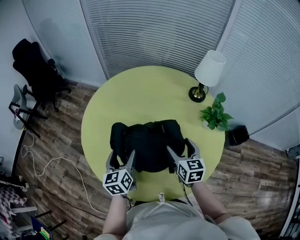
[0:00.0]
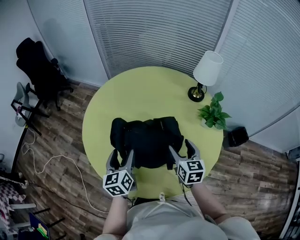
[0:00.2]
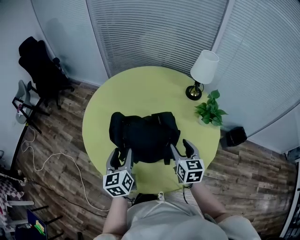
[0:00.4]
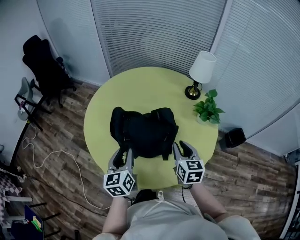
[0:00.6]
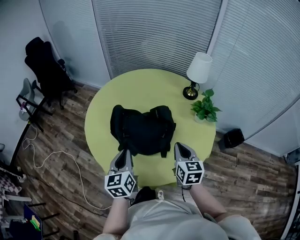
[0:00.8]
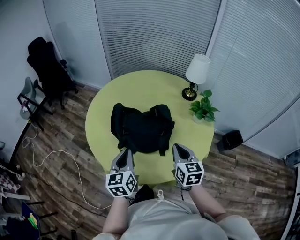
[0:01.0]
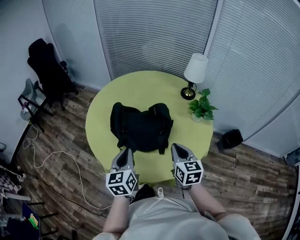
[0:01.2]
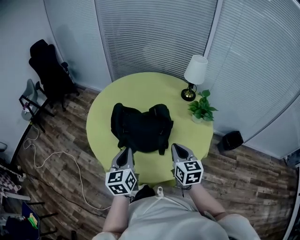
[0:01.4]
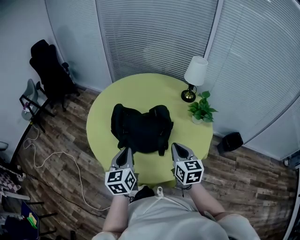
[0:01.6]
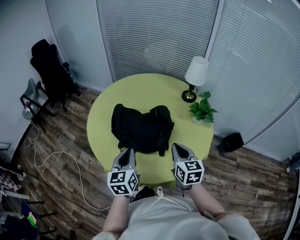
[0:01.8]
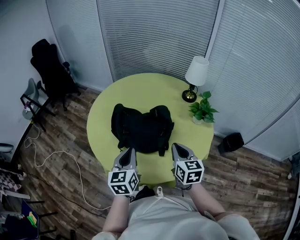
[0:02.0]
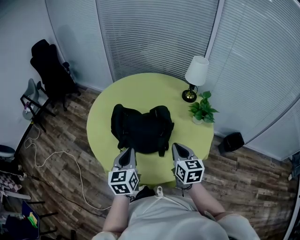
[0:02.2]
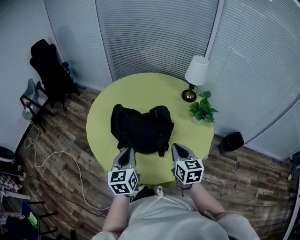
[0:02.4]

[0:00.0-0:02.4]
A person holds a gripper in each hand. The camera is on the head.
0:00.0 to 0:01.2: The right gripper moves backward, roughly 15 cm, and closes. The left gripper moves backward and upward, approximately 20 cm, and closes.
0:01.2 to 0:02.4: The grippers move only a little.

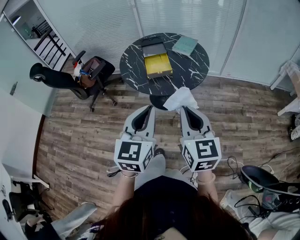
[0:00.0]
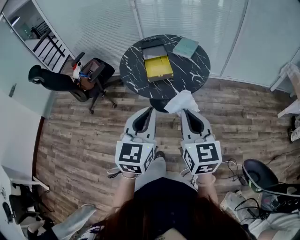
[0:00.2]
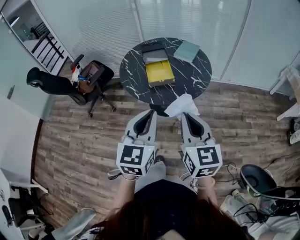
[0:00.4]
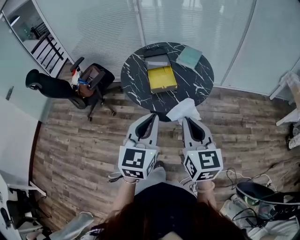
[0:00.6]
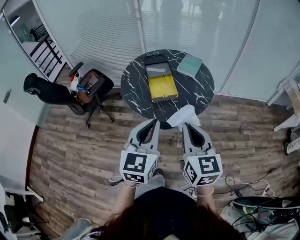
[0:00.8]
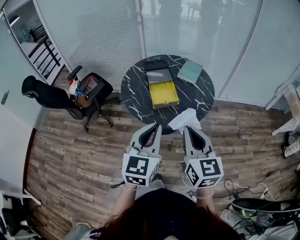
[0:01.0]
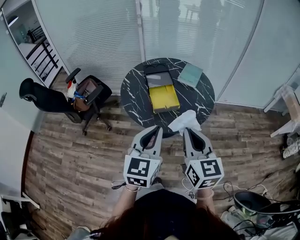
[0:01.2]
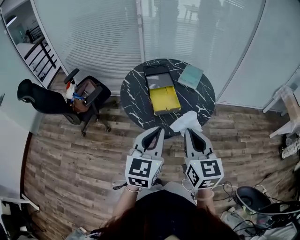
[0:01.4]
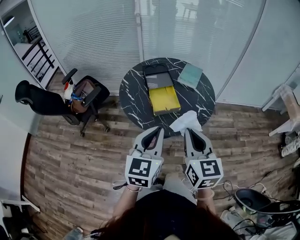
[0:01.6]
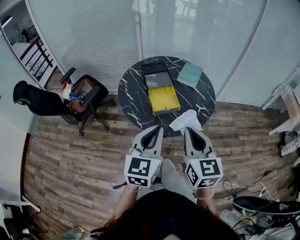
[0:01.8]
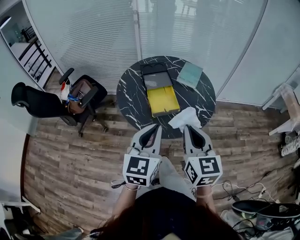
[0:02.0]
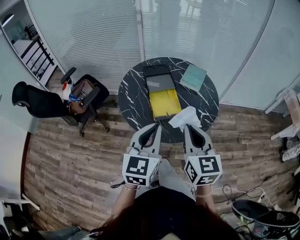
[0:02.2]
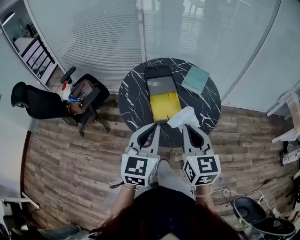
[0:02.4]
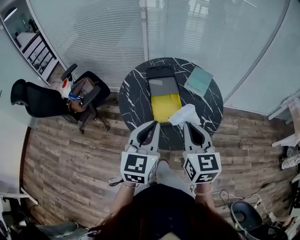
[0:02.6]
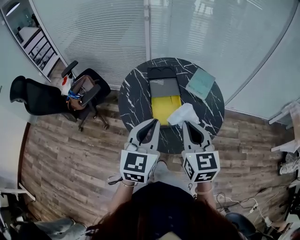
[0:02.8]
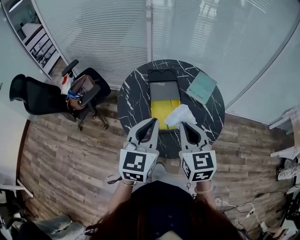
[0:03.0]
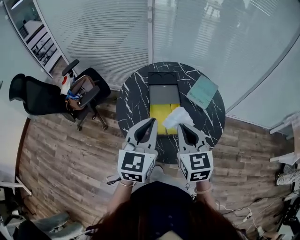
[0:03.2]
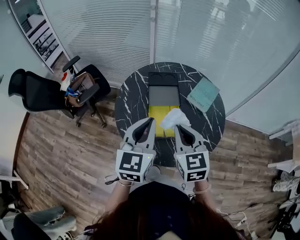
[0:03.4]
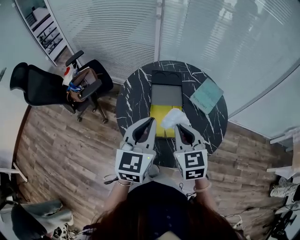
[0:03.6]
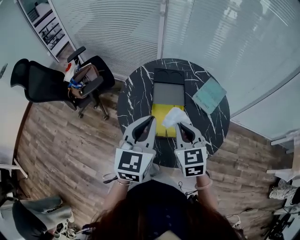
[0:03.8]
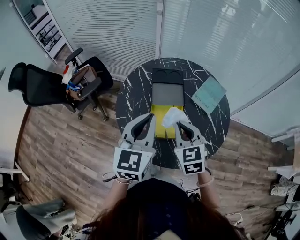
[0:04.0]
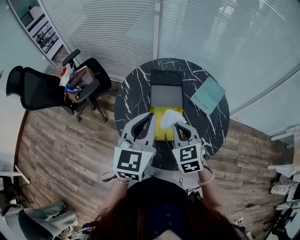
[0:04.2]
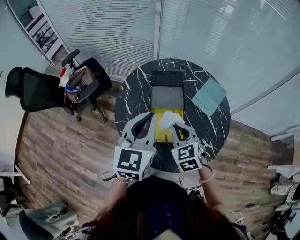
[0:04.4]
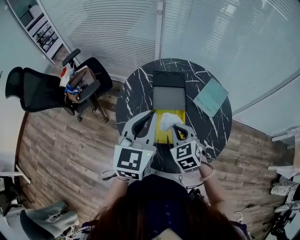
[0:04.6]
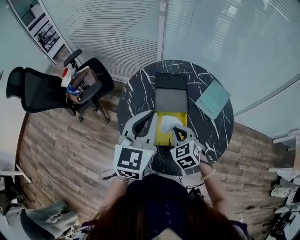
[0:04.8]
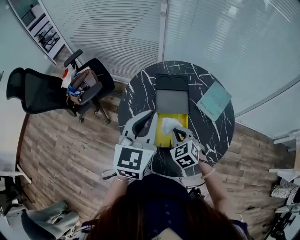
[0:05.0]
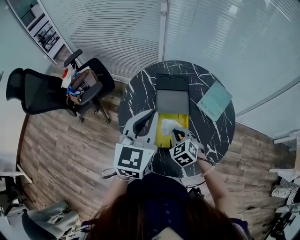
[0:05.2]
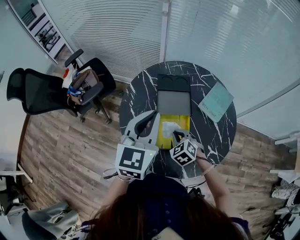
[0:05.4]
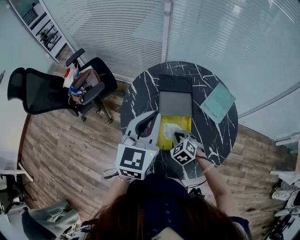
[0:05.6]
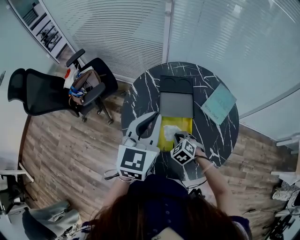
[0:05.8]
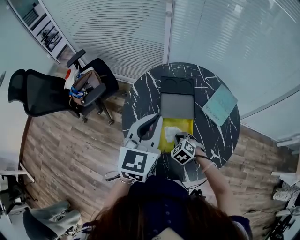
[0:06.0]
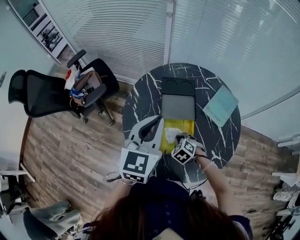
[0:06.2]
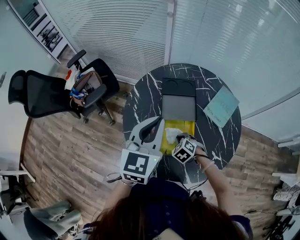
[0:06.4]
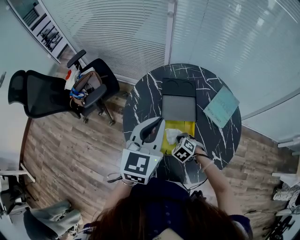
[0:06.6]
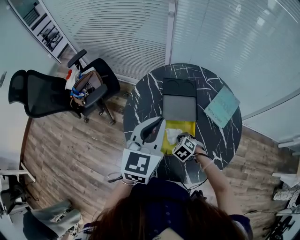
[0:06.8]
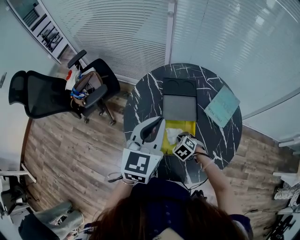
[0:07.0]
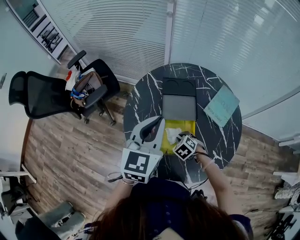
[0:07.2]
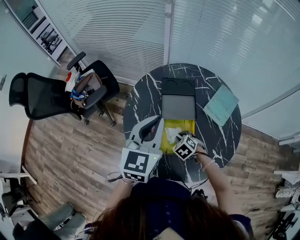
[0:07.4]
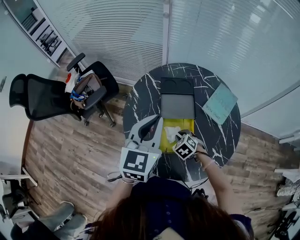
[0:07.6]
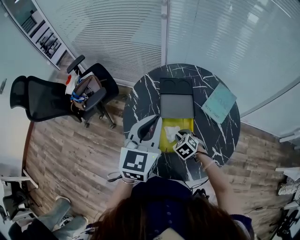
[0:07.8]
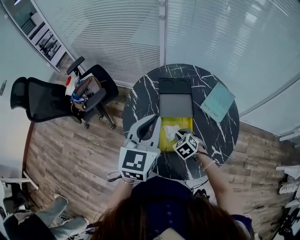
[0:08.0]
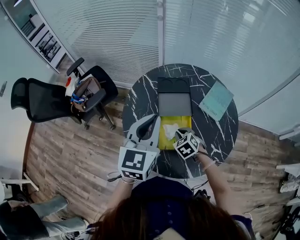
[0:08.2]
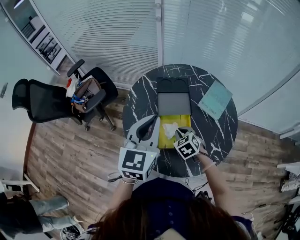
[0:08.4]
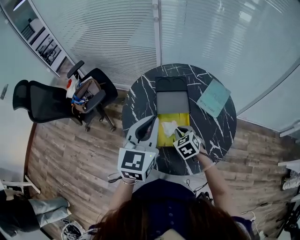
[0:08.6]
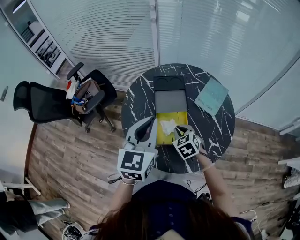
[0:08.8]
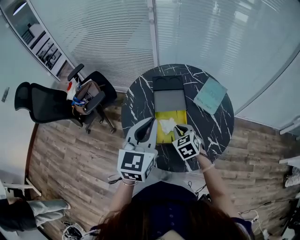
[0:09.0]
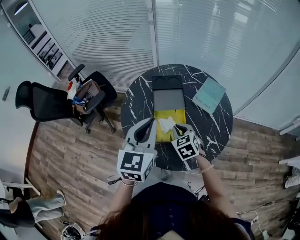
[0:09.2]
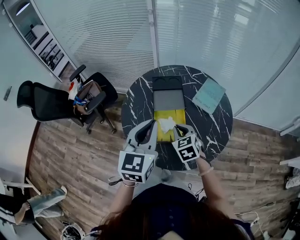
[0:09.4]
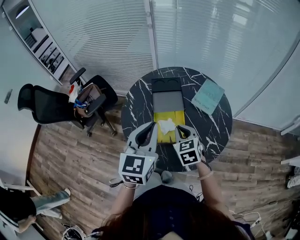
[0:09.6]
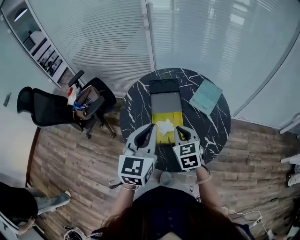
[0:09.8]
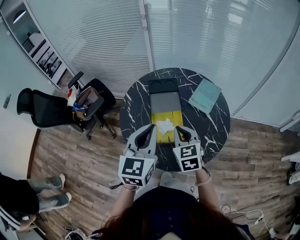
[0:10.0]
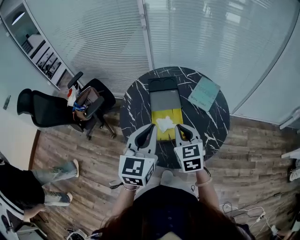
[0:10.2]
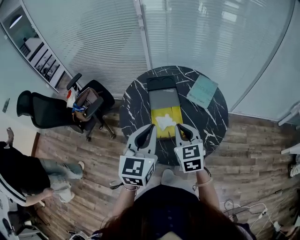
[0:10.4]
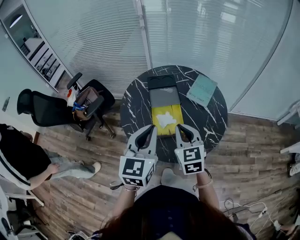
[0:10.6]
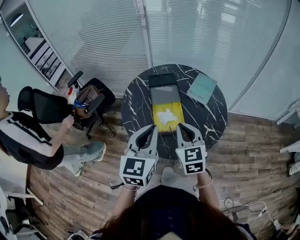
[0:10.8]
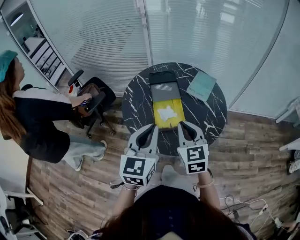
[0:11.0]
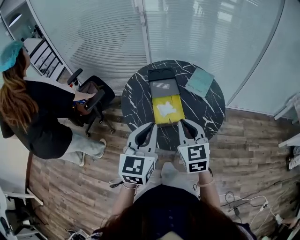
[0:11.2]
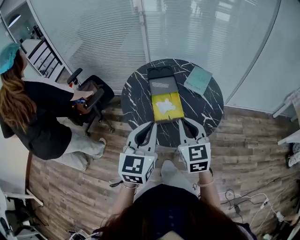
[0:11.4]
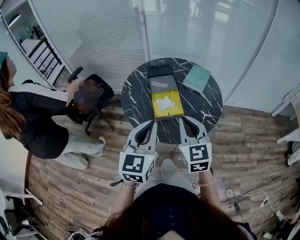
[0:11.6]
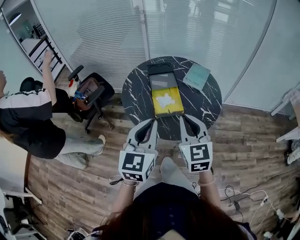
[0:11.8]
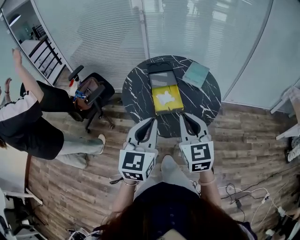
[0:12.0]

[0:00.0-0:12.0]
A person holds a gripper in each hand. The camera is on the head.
0:00.0 to 0:01.6: Both grippers travel together forward and to the left, approximately 20 cm.
0:01.6 to 0:03.0: Both grippers move forward, about 20 cm.
0:03.0 to 0:04.4: The left gripper heads forward, covering about 10 cm. Meanwhile the right gripper moves downward and forward, about 15 cm, and swivels approximately 30 degrees.
0:04.4 to 0:06.0: The left gripper shifts some 5 cm forward, while the right gripper travels downward by roughly 20 cm, and swivels about 30 degrees.
0:06.0 to 0:07.6: The grippers move only a little.
0:07.6 to 0:09.0: The left gripper moves backward, roughly 10 cm. The right gripper moves upward, some 10 cm, and turns by approximately 20 degrees.
0:09.0 to 0:10.4: The right gripper shifts roughly 15 cm upward and backward, and changes its angle by approximately 30 degrees. Meanwhile the left gripper moves backward, roughly 5 cm.
0:10.4 to 0:12.0: The right gripper moves backward and upward, approximately 20 cm. The left gripper is displaced backward by about 15 cm.

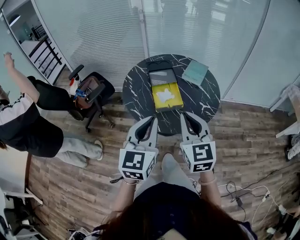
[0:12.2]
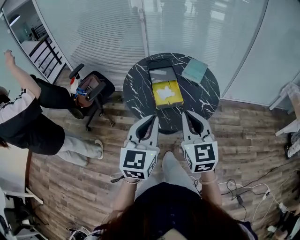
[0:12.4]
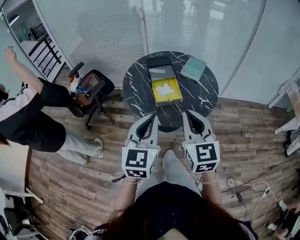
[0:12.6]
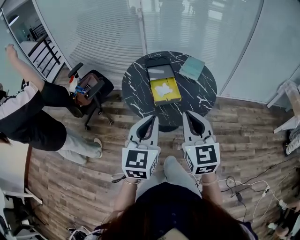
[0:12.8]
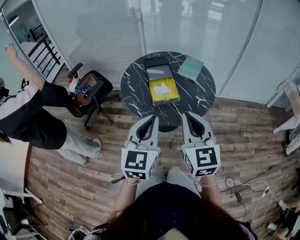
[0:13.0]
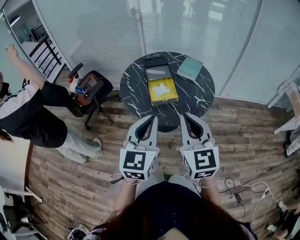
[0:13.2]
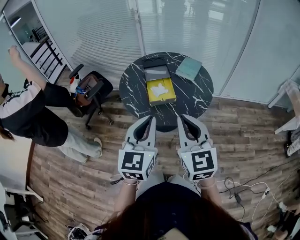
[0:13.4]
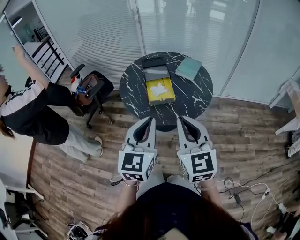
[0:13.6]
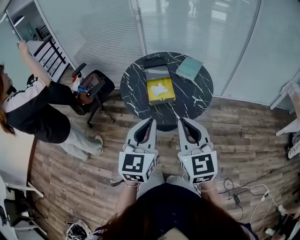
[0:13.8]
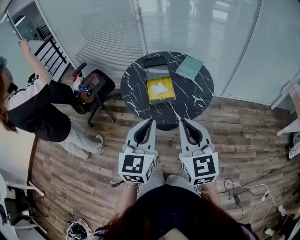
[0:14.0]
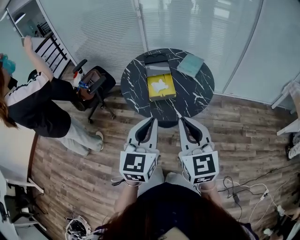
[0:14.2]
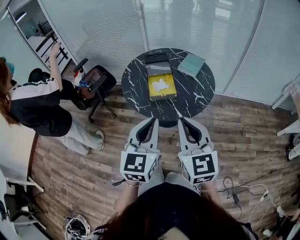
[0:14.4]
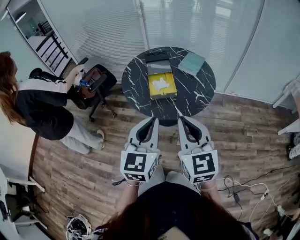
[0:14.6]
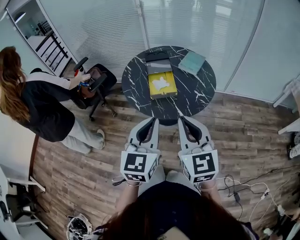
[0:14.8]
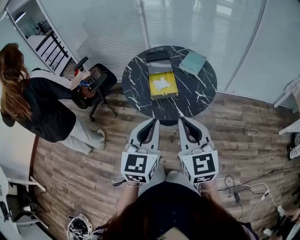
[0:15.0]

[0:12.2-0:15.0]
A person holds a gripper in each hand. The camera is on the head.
0:12.2 to 0:13.6: The right gripper heads backward, covering about 10 cm, while the left gripper travels backward and to the right by some 10 cm.
0:13.6 to 0:15.0: The grippers make only small movements.

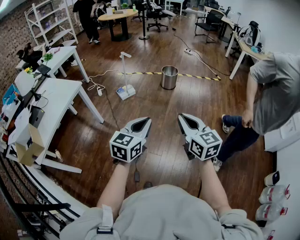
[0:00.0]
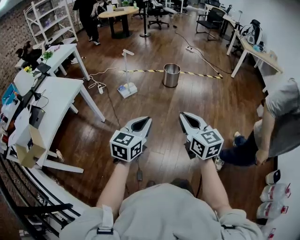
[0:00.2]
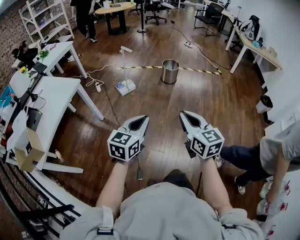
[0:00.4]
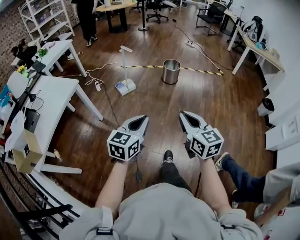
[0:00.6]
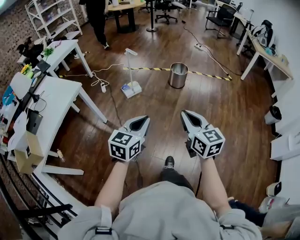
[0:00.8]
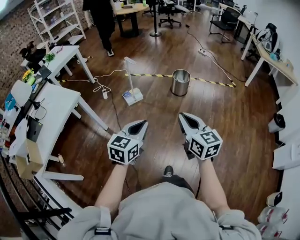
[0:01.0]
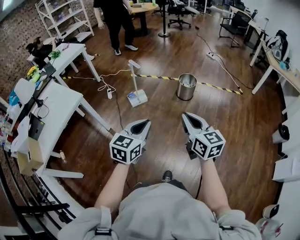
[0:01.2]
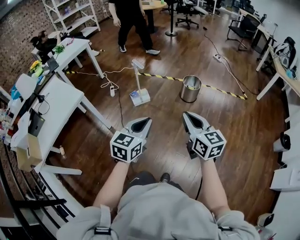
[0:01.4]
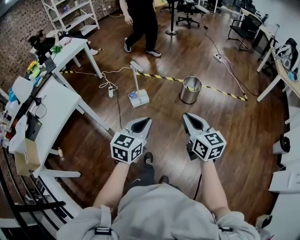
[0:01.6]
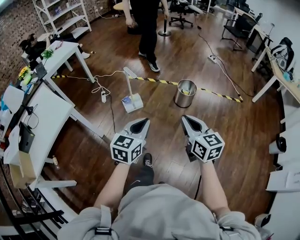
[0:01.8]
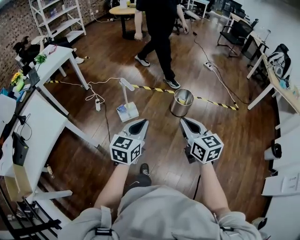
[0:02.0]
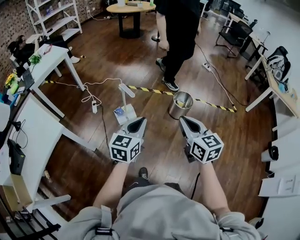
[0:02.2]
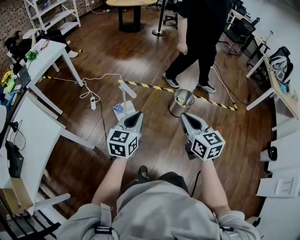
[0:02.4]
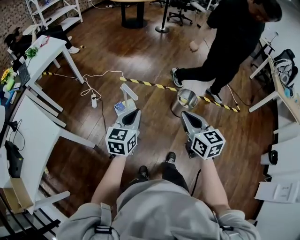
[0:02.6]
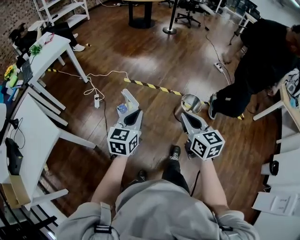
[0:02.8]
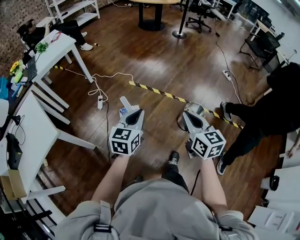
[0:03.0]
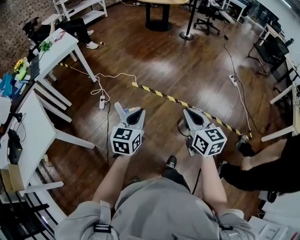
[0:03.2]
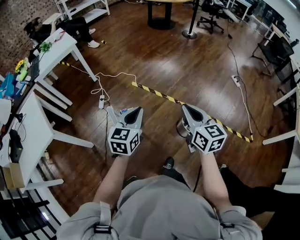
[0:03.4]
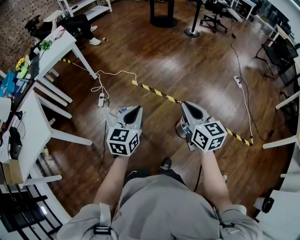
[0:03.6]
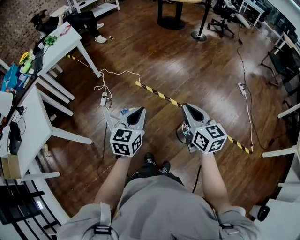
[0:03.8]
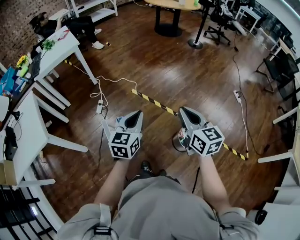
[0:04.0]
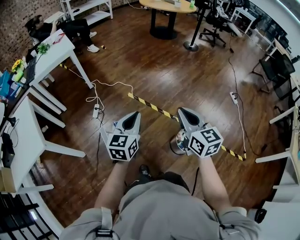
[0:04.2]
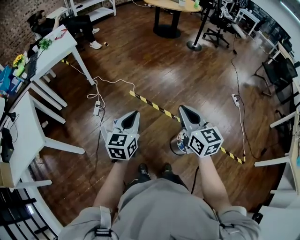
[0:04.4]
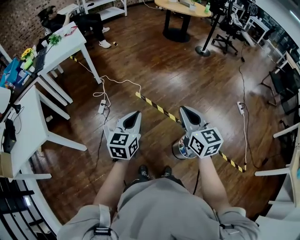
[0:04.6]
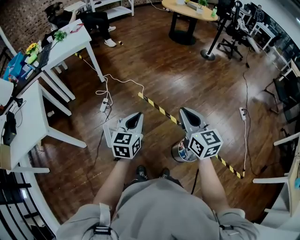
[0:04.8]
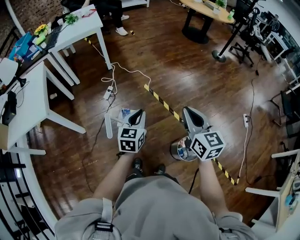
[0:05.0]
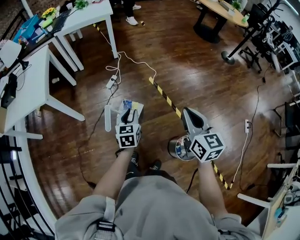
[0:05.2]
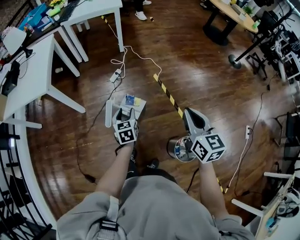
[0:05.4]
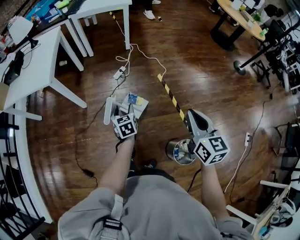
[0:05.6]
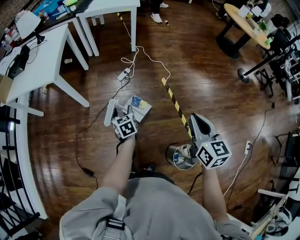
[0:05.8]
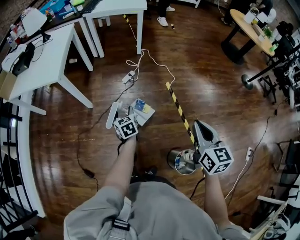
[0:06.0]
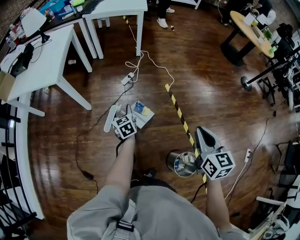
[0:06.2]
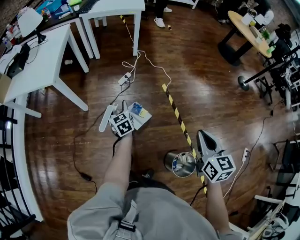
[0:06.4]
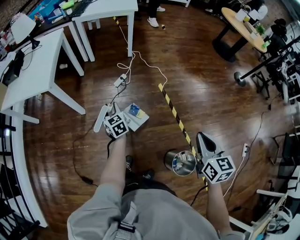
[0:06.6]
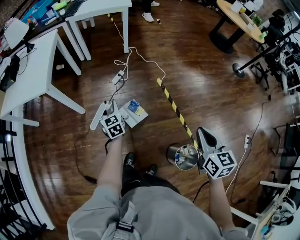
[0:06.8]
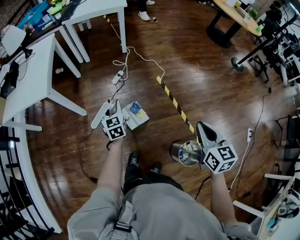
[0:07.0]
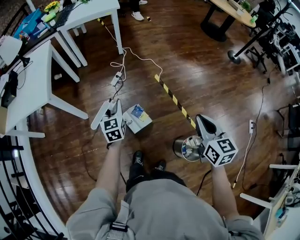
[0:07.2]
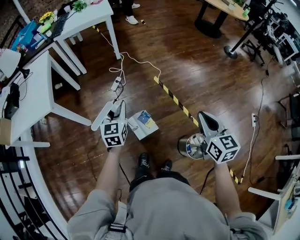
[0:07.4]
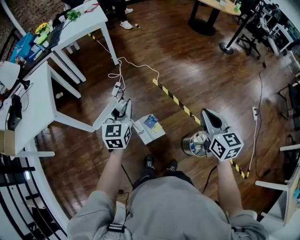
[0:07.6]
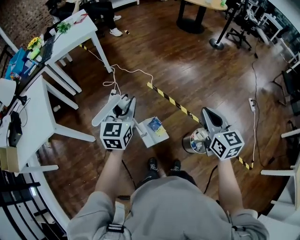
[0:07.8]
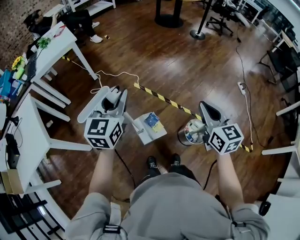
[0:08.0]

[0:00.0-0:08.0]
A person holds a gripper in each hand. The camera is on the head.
0:00.0 to 0:01.6: Both grippers travel together forward, about 40 cm.
0:01.6 to 0:03.2: Both grippers are carried forward, roughly 50 cm.
0:03.2 to 0:04.8: The two grippers go some 15 cm forward.
0:04.8 to 0:06.4: The left gripper ends up approximately 30 cm from where it was, turns by some 60 degrees, and opens its fingers. The right gripper moves downward, some 10 cm, and swivels approximately 20 degrees.
0:06.4 to 0:08.0: The left gripper goes about 30 cm upward, turns by roughly 70 degrees, and closes up, while the right gripper changes place by some 10 cm, and changes its angle by about 30 degrees.
